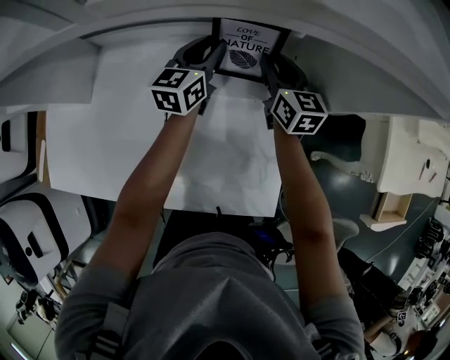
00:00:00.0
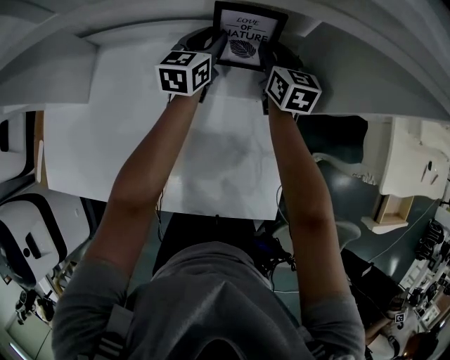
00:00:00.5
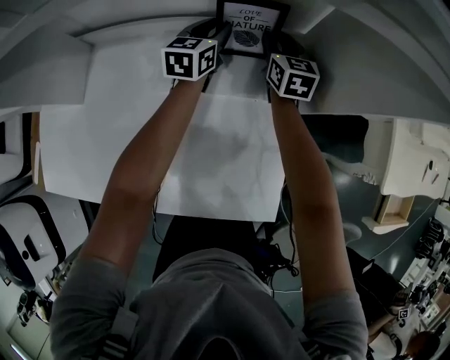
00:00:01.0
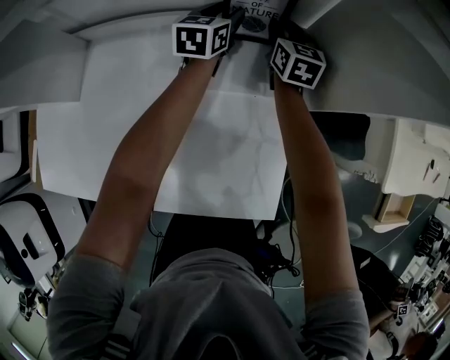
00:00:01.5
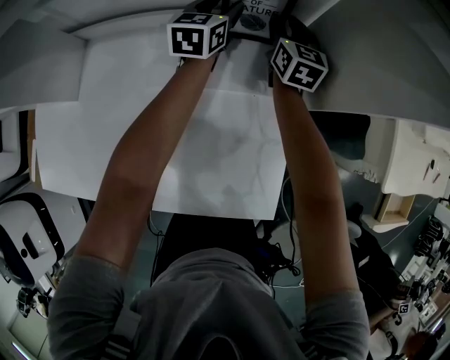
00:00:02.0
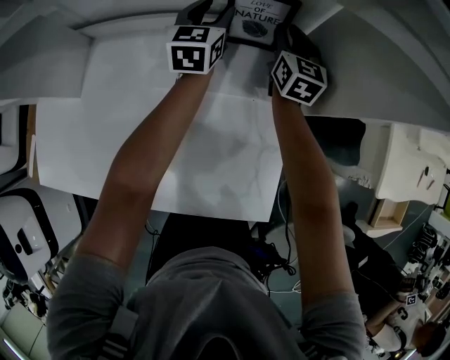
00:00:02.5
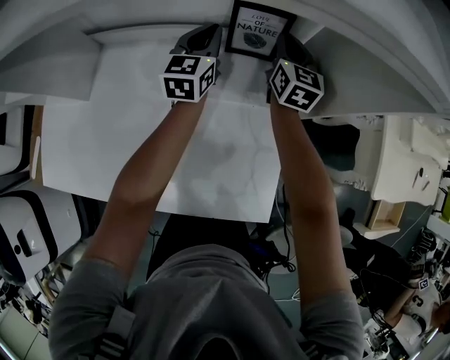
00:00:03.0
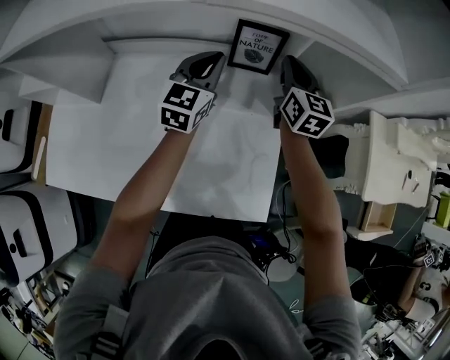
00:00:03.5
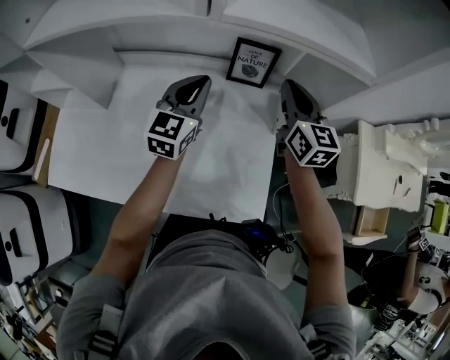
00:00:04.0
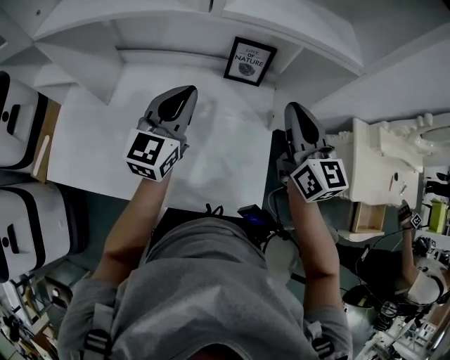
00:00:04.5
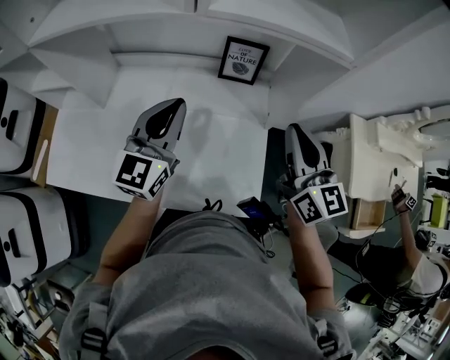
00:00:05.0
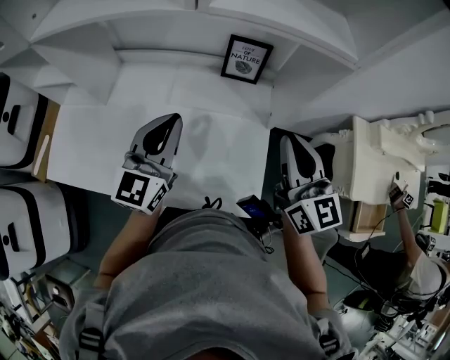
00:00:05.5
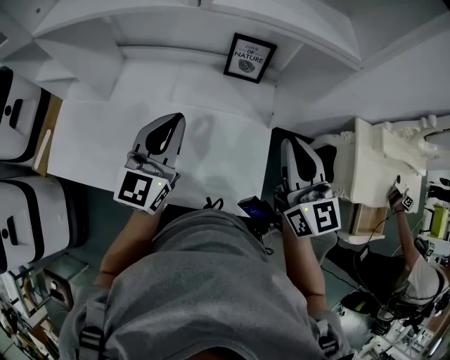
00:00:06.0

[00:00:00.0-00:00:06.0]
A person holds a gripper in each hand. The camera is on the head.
00:00:00.0 to 00:00:02.0: The grippers both shift forward by approximately 10 cm. The left gripper opens.
00:00:02.0 to 00:00:04.0: The right gripper travels upward and backward by about 25 cm, and closes up. Meanwhile the left gripper heads backward and upward, covering approximately 25 cm, and closes up.
00:00:04.0 to 00:00:06.0: The grippers both shift backward by roughly 15 cm.

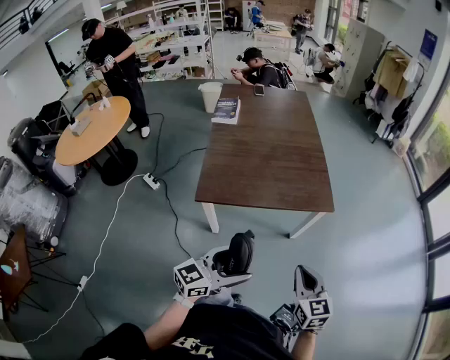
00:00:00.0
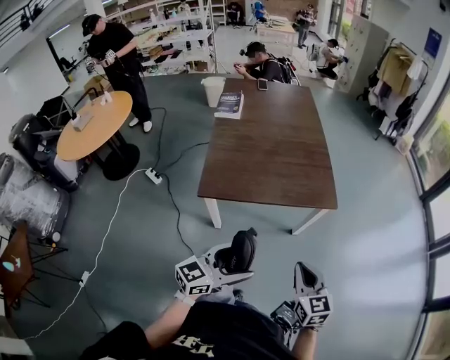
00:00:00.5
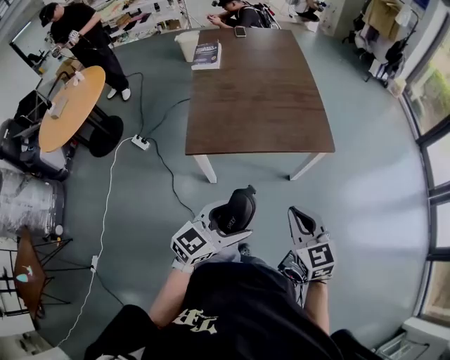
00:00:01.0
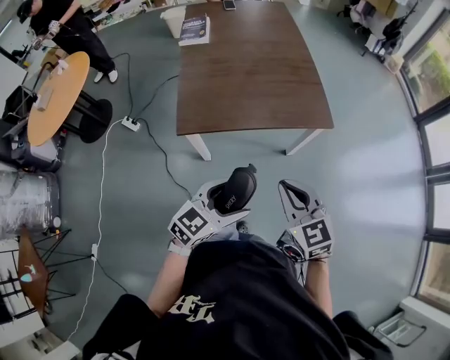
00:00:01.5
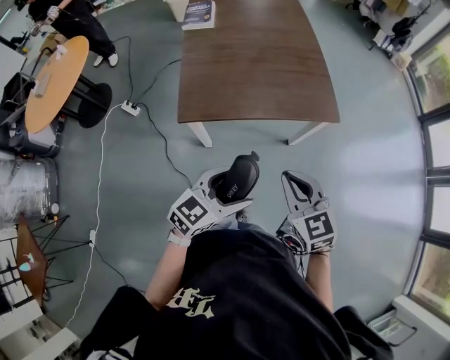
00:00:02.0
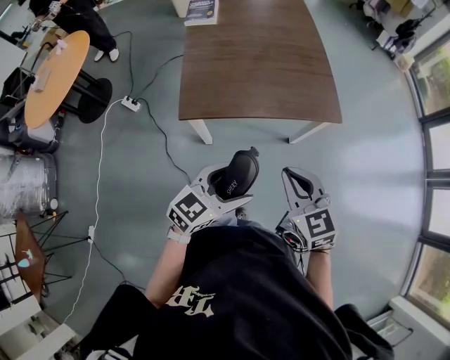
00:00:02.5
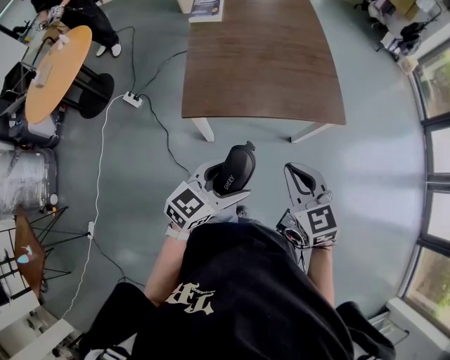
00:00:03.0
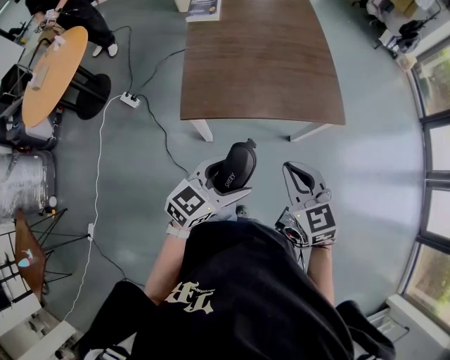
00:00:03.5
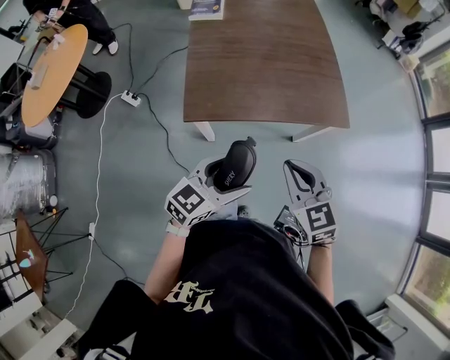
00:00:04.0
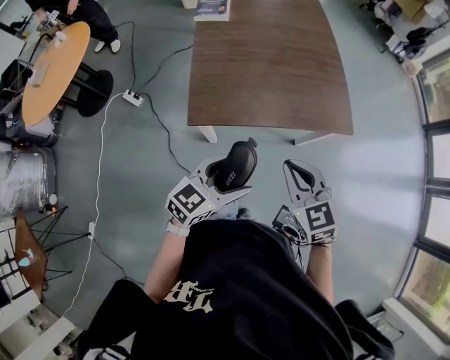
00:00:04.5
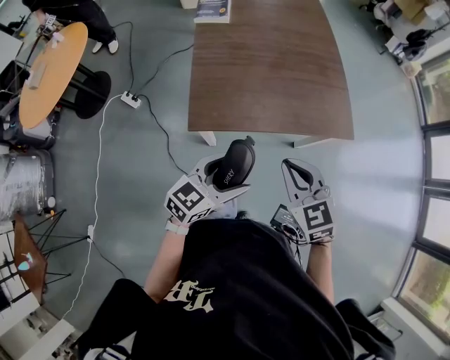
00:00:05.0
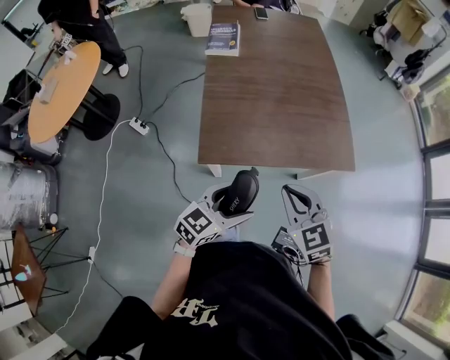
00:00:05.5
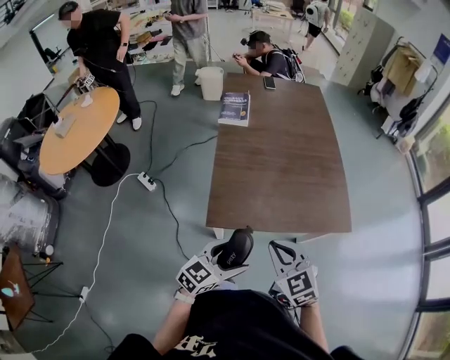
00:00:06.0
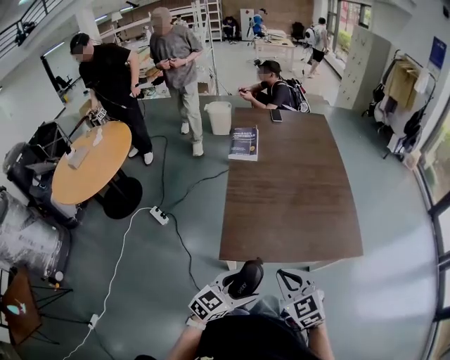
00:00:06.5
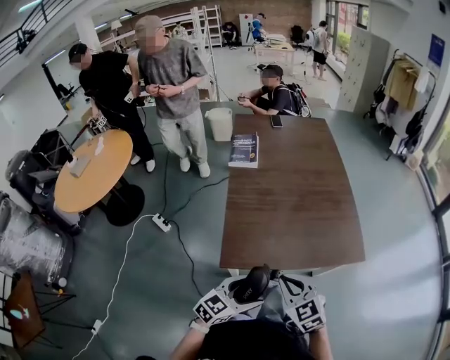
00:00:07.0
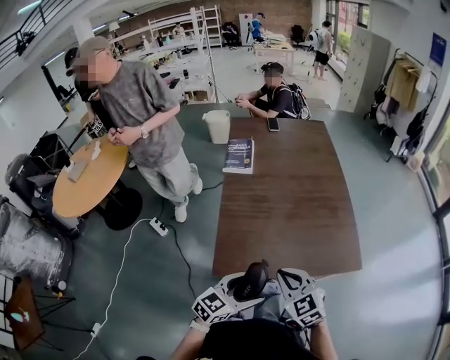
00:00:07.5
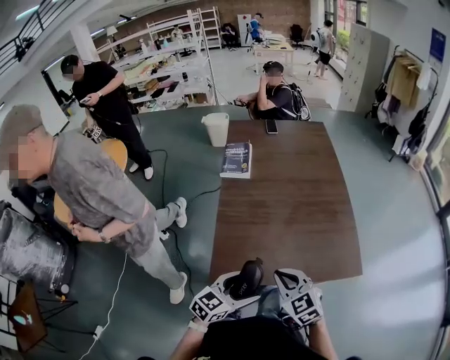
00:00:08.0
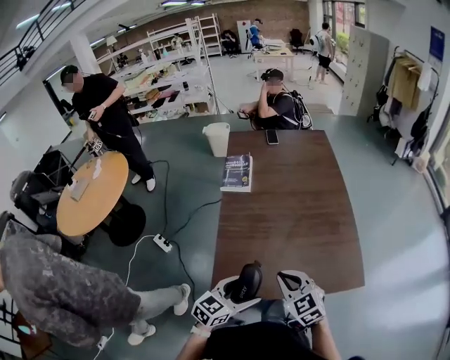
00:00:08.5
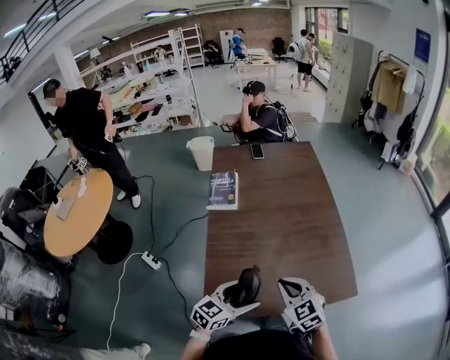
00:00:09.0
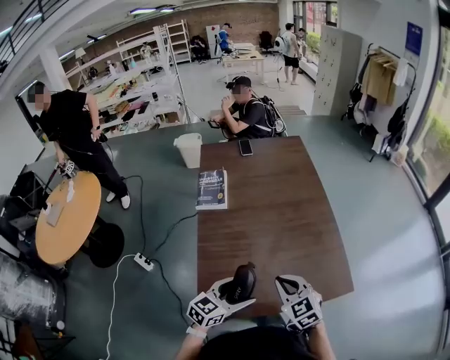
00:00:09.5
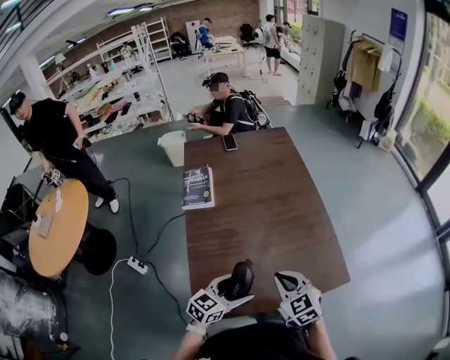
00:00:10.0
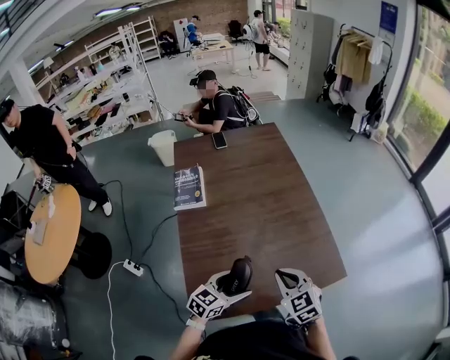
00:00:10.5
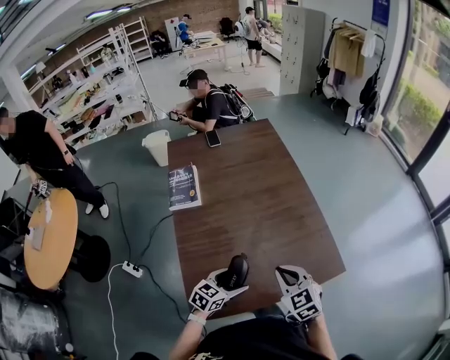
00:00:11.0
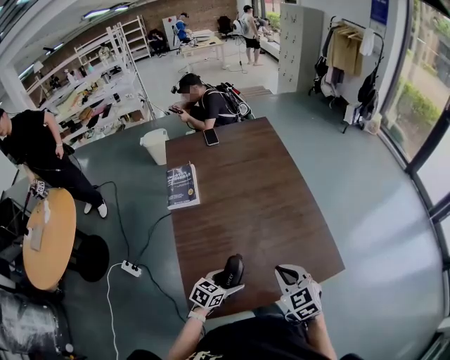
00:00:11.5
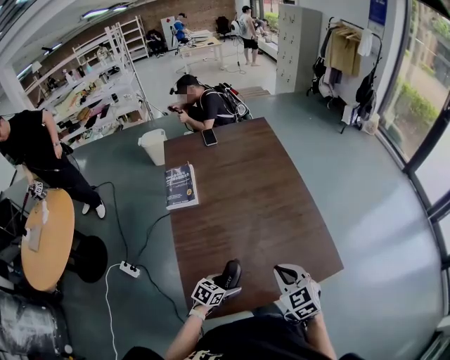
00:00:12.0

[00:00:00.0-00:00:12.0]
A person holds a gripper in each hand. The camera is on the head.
00:00:00.0 to 00:00:02.0: The left gripper heads downward, covering some 5 cm; the right gripper is displaced to the left and forward by about 10 cm.
00:00:02.0 to 00:00:04.0: Both grippers travel together forward and to the left, roughly 10 cm.
00:00:04.0 to 00:00:06.0: Both grippers travel together to the left and forward, about 15 cm.
00:00:06.0 to 00:00:08.0: Both grippers move forward, approximately 15 cm.
00:00:08.0 to 00:00:10.0: The grippers both shift forward by approximately 15 cm.
00:00:10.0 to 00:00:12.0: The left gripper heads downward, covering roughly 15 cm, and turns by approximately 30 degrees.

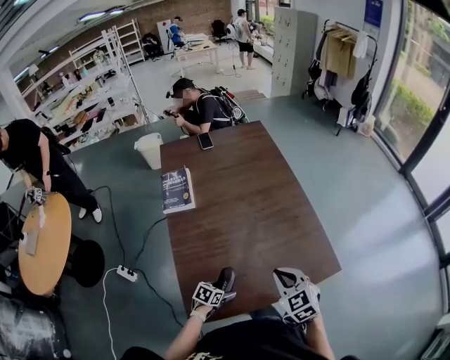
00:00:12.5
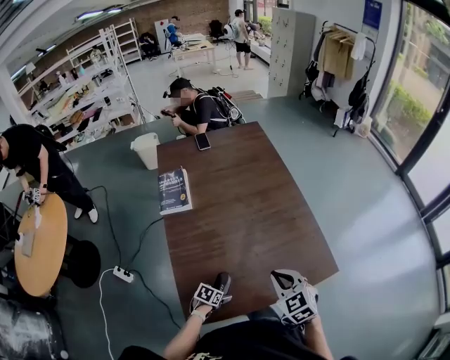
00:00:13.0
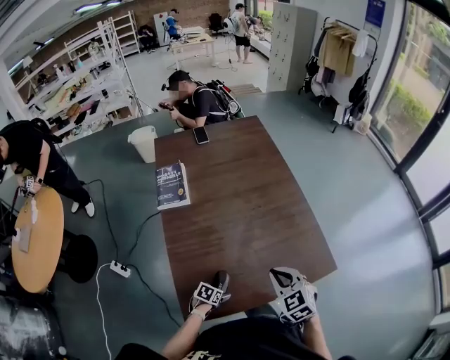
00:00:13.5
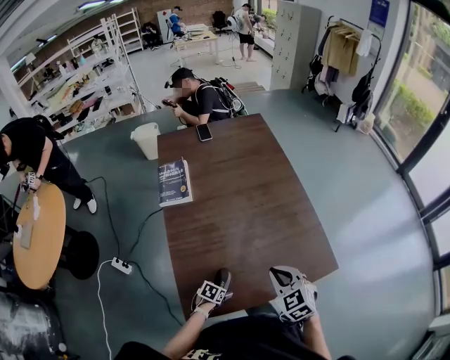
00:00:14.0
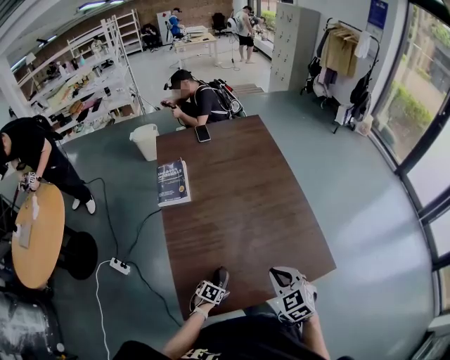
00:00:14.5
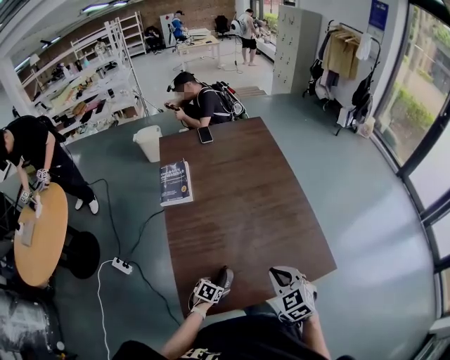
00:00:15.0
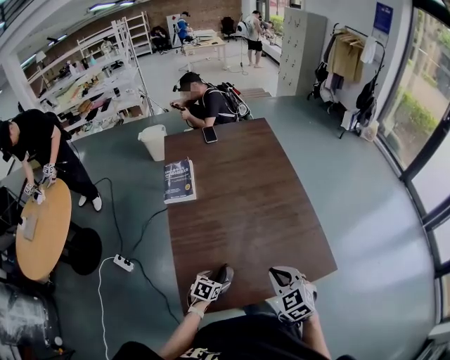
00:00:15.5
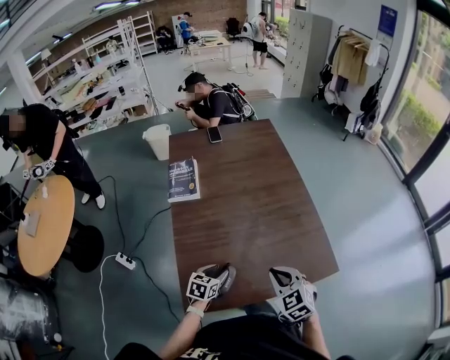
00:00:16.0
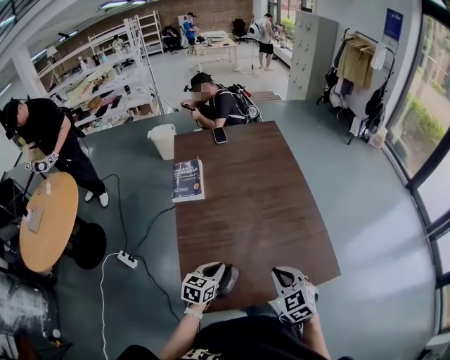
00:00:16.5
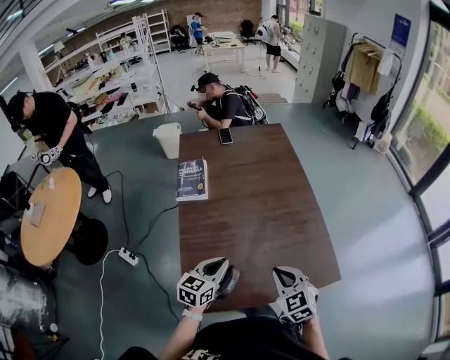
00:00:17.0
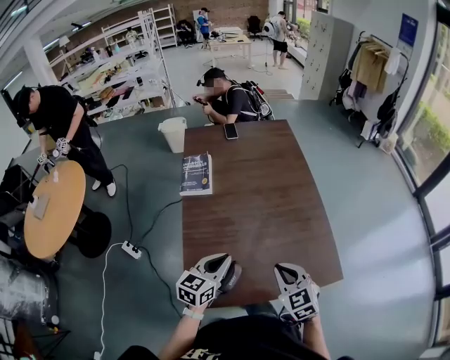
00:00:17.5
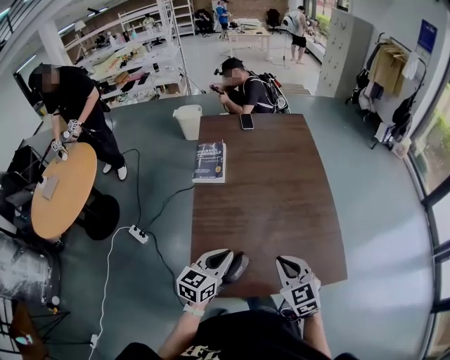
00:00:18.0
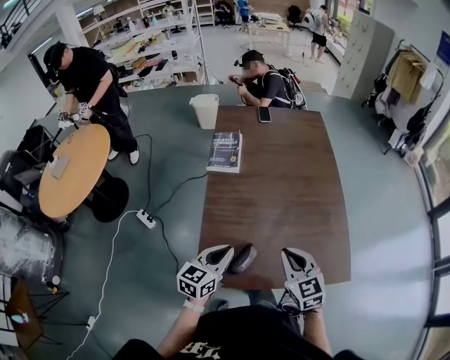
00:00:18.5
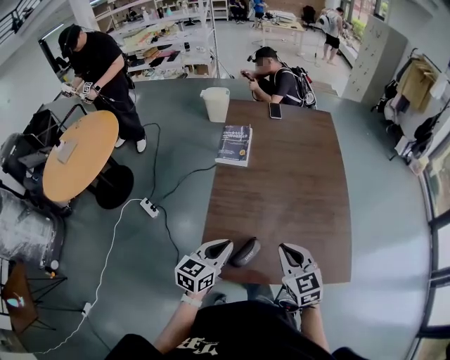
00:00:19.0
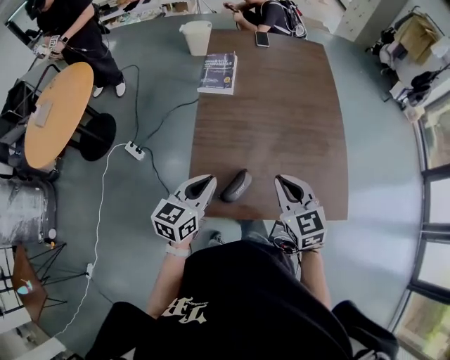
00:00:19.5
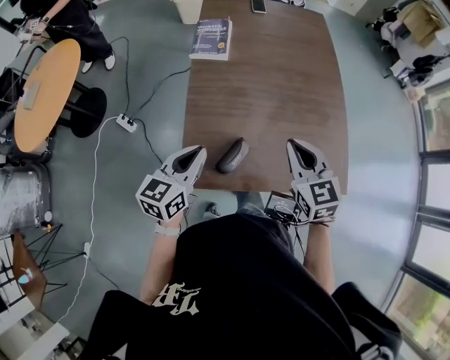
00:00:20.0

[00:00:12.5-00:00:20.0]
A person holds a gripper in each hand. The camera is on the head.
00:00:12.5 to 00:00:14.5: The left gripper moves downward, approximately 5 cm.
00:00:14.5 to 00:00:16.5: The left gripper goes about 25 cm upward, tilts its fingers some 40 degrees upward, and closes its fingers.
00:00:16.5 to 00:00:18.0: The left gripper heads upward, covering approximately 10 cm.
00:00:18.0 to 00:00:20.0: The left gripper moves to the left and backward, approximately 10 cm.

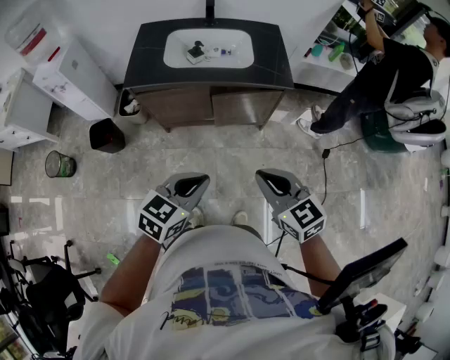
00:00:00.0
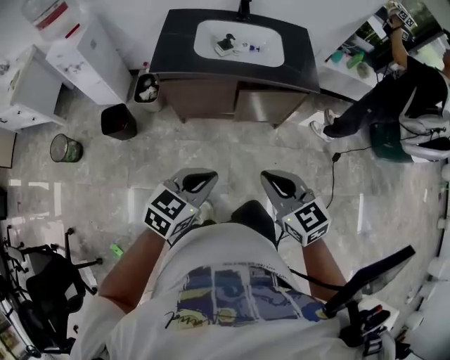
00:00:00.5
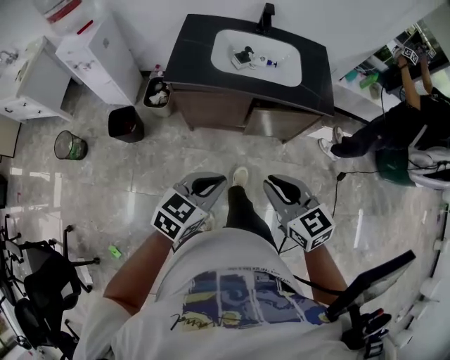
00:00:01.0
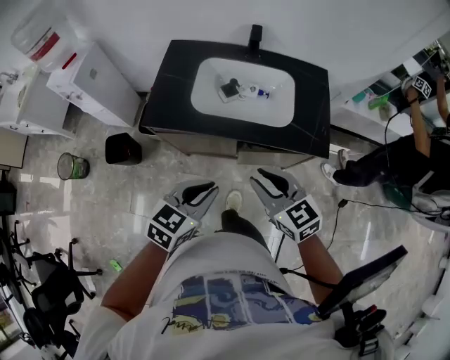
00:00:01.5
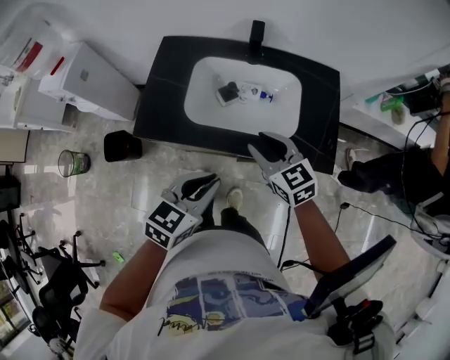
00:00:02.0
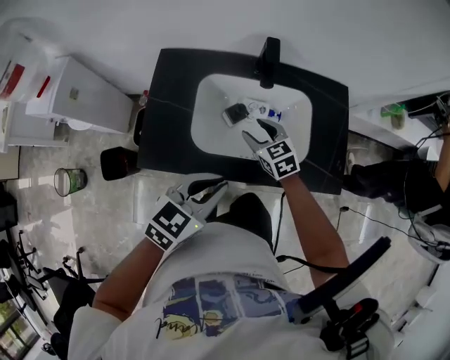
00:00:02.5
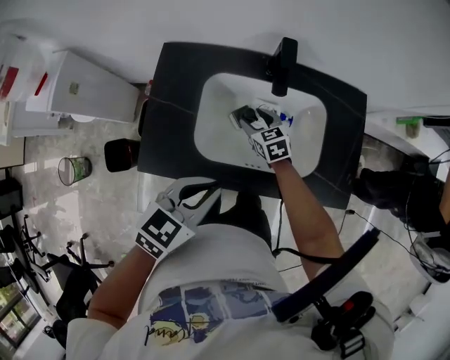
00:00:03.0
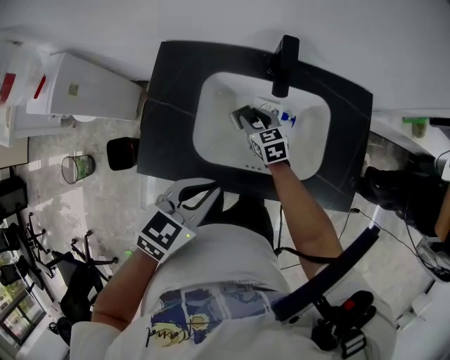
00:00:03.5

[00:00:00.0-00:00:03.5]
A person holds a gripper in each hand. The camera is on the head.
00:00:00.0 to 00:00:02.0: The two grippers go some 40 cm forward. The right gripper opens up.
00:00:02.0 to 00:00:03.5: The left gripper travels forward and to the left by some 15 cm, while the right gripper travels forward, downward and to the left by approximately 30 cm.
